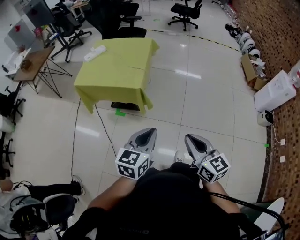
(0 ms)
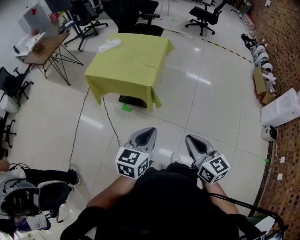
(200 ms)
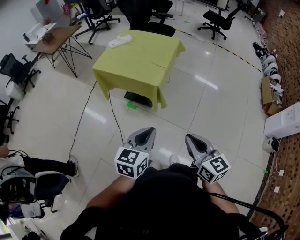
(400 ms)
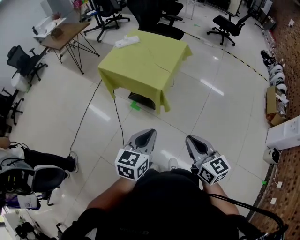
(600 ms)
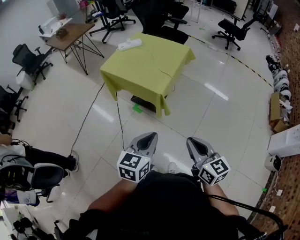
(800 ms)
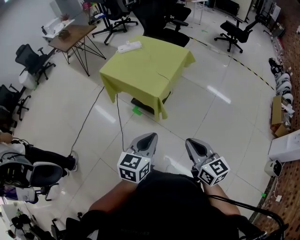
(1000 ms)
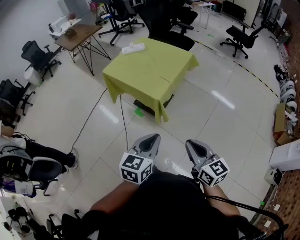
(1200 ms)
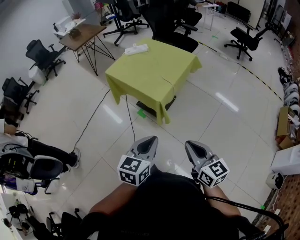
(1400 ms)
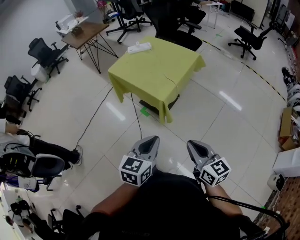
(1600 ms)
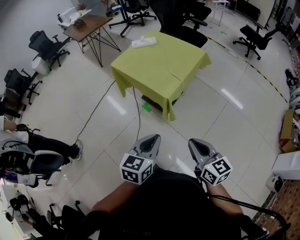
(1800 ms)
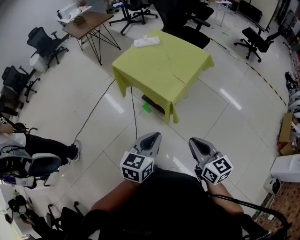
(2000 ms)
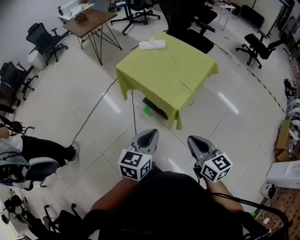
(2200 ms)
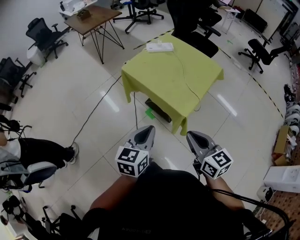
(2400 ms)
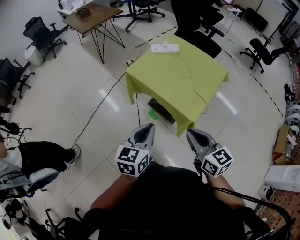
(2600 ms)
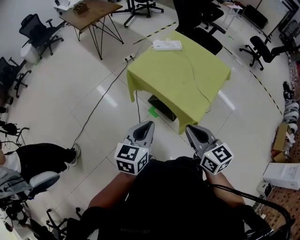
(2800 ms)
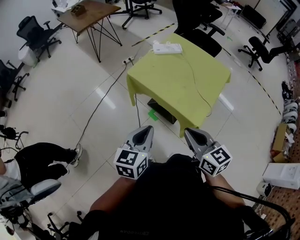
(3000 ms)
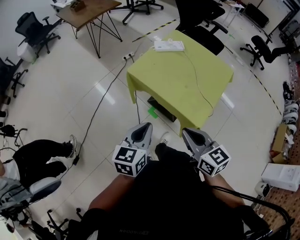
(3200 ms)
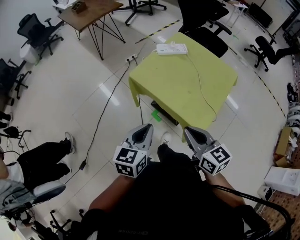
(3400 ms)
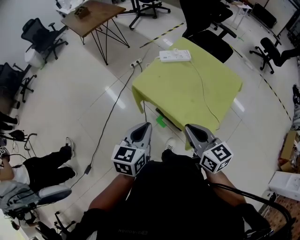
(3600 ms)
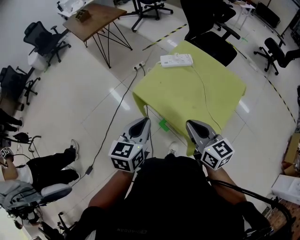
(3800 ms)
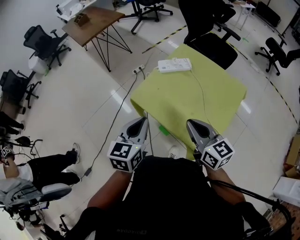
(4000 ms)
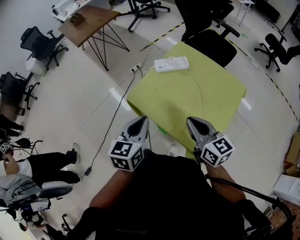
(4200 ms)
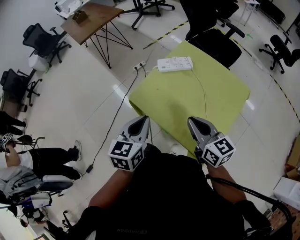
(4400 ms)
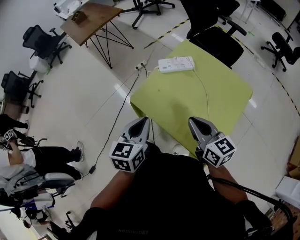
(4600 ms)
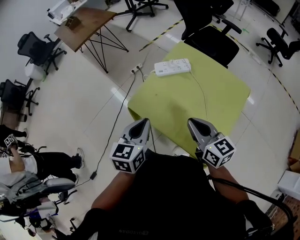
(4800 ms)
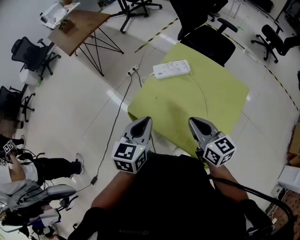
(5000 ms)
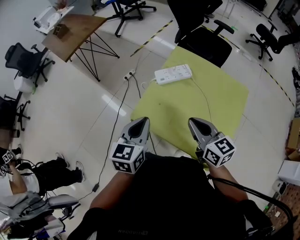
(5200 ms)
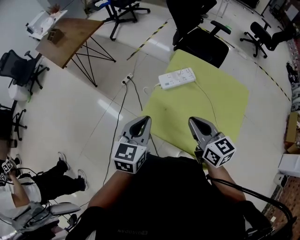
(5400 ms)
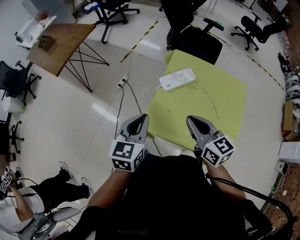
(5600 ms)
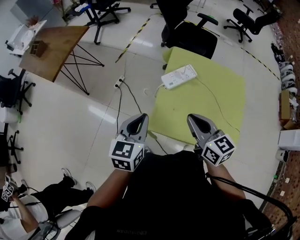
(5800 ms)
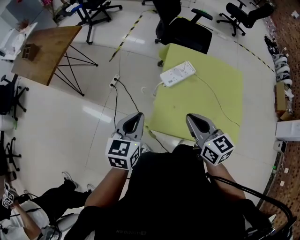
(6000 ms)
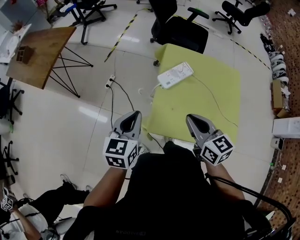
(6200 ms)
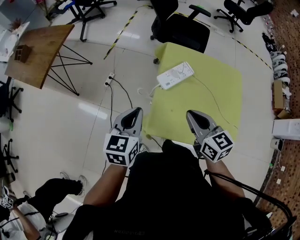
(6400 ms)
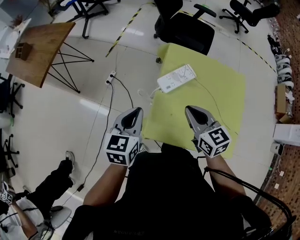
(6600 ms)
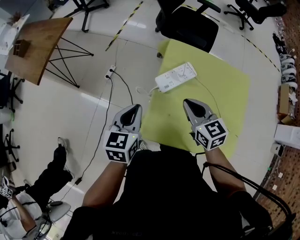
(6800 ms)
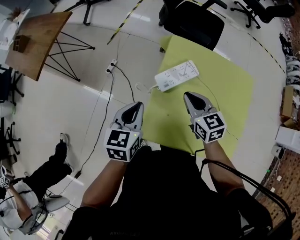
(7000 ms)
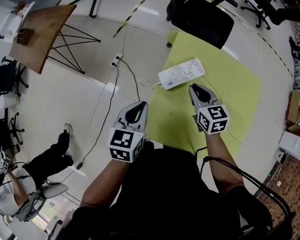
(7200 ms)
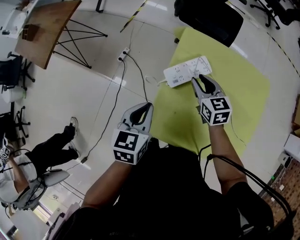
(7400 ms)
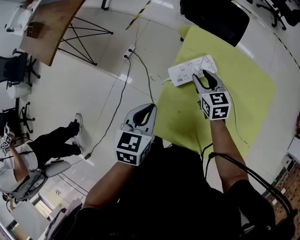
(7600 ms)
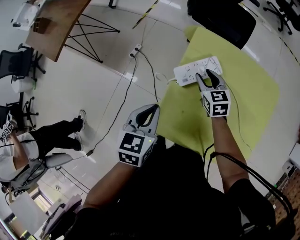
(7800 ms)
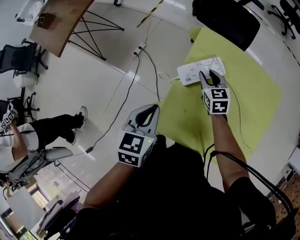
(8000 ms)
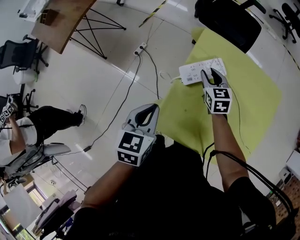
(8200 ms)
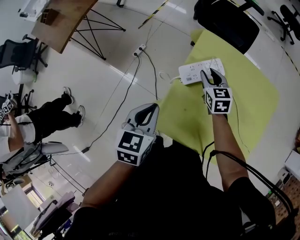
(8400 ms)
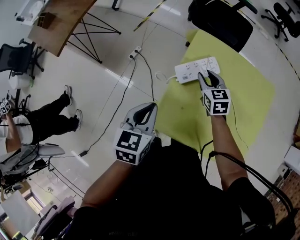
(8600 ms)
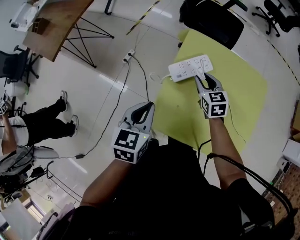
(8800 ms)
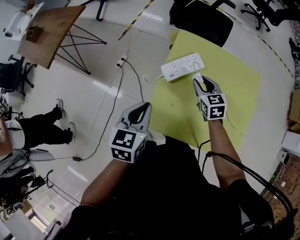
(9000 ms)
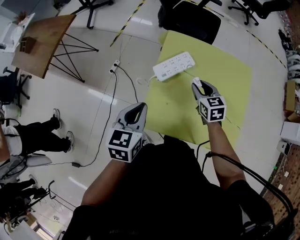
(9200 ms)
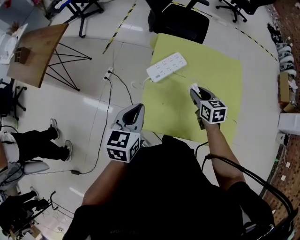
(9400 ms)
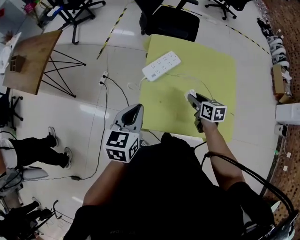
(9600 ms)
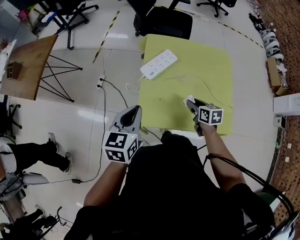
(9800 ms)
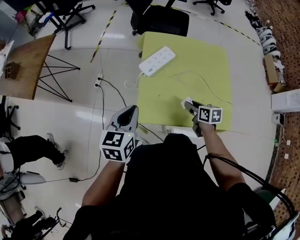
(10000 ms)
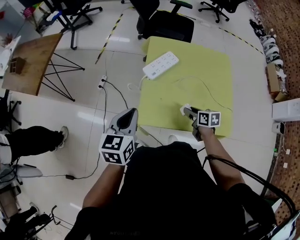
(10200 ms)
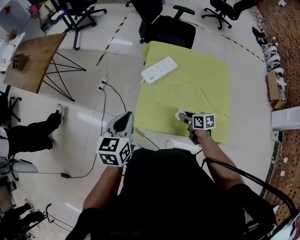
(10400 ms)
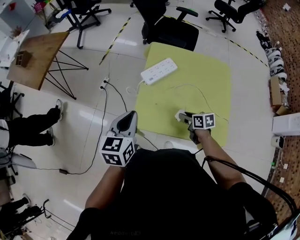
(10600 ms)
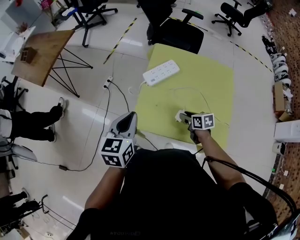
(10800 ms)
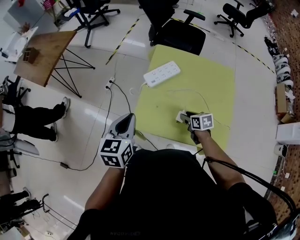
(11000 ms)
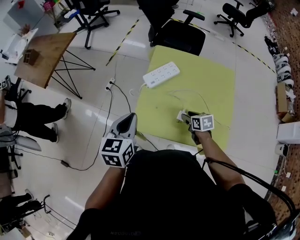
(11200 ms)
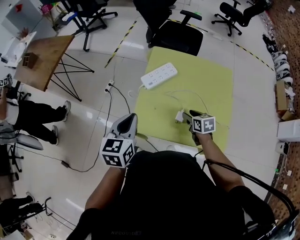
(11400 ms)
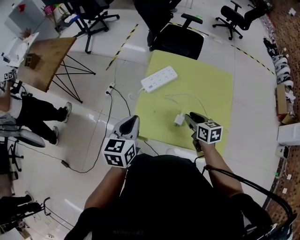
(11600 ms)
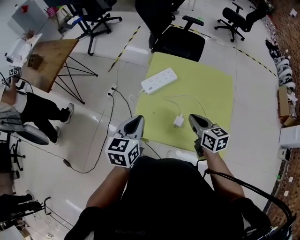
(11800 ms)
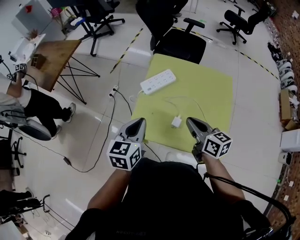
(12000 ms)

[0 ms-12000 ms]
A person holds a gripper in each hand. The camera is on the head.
0 ms to 1600 ms: The right gripper ends up approximately 15 cm from where it was, and swivels some 30 degrees, while the left gripper changes place by approximately 10 cm, and rotates approximately 30 degrees.
1600 ms to 3000 ms: Both grippers move forward and to the left, about 35 cm.
3000 ms to 4400 ms: Both grippers travel together forward, approximately 25 cm.
4400 ms to 6000 ms: The left gripper ends up approximately 25 cm from where it was, and changes its angle by some 30 degrees, while the right gripper ends up approximately 20 cm from where it was, and changes its angle by some 30 degrees.
6000 ms to 7600 ms: The right gripper goes about 30 cm forward and downward, and opens up, while the left gripper is displaced forward, to the right and downward by roughly 15 cm.
7600 ms to 9000 ms: The left gripper changes place by some 5 cm. The right gripper shifts about 5 cm backward.
9000 ms to 10400 ms: The right gripper goes about 20 cm backward, and changes its angle by approximately 40 degrees. The left gripper heads backward, covering approximately 5 cm.
10400 ms to 12000 ms: The left gripper heads to the right, covering about 10 cm. The right gripper travels upward by some 20 cm, swivels some 30 degrees, and closes its fingers.

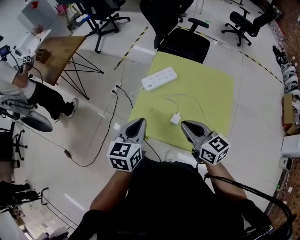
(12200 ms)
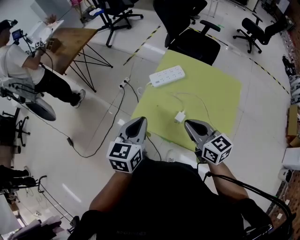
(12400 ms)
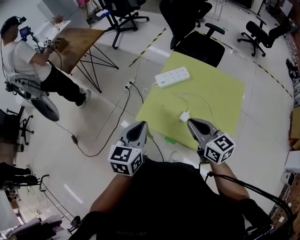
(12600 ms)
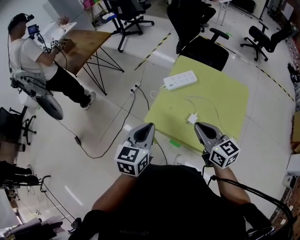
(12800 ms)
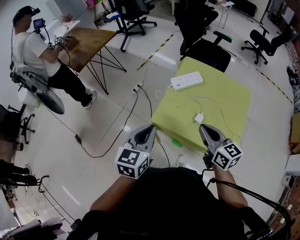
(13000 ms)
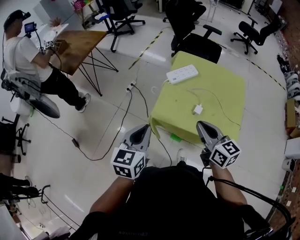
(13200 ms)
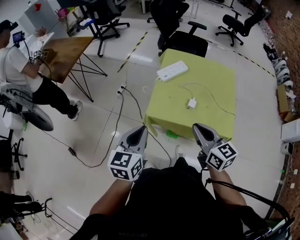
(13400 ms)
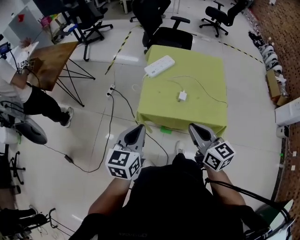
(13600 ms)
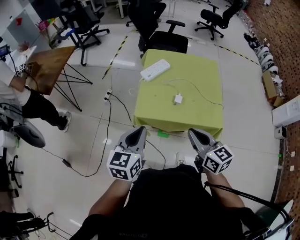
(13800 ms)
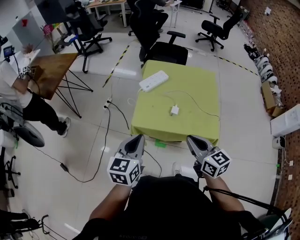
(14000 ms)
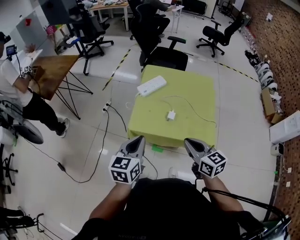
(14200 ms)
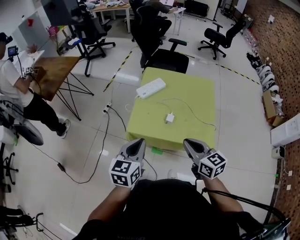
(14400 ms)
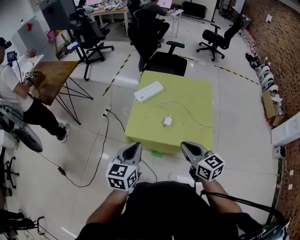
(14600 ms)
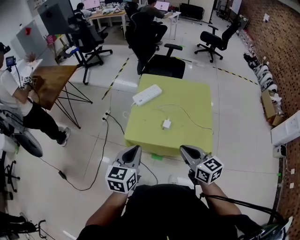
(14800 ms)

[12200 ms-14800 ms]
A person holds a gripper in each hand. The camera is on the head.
12200 ms to 13400 ms: The grippers both shift to the left and backward by approximately 15 cm.
13400 ms to 14800 ms: The two grippers go some 10 cm to the right.

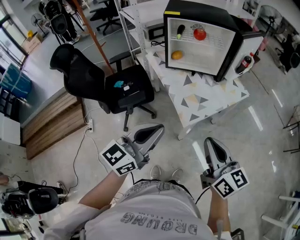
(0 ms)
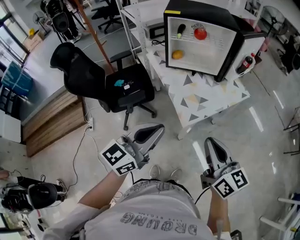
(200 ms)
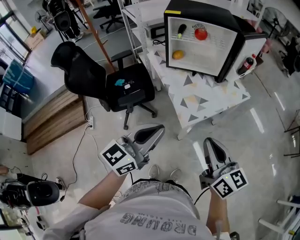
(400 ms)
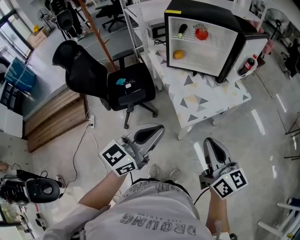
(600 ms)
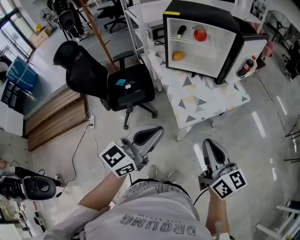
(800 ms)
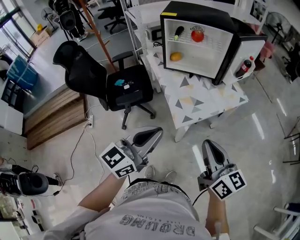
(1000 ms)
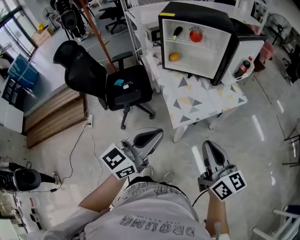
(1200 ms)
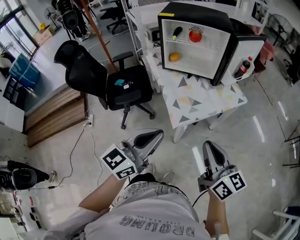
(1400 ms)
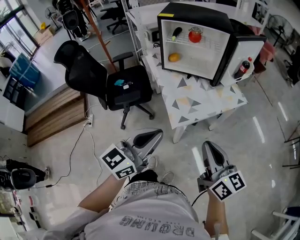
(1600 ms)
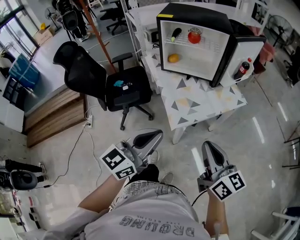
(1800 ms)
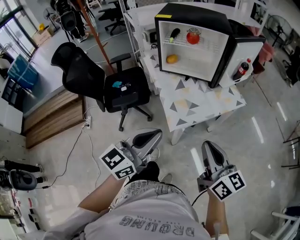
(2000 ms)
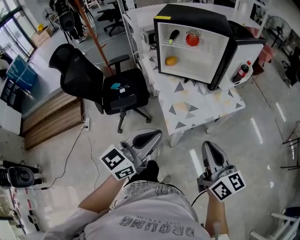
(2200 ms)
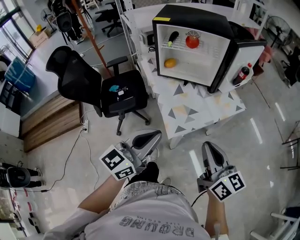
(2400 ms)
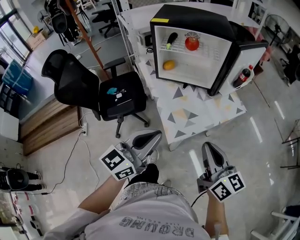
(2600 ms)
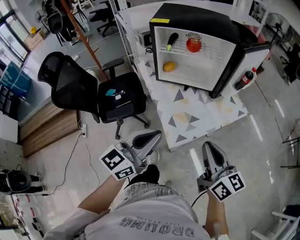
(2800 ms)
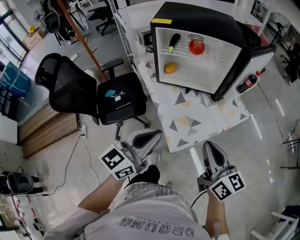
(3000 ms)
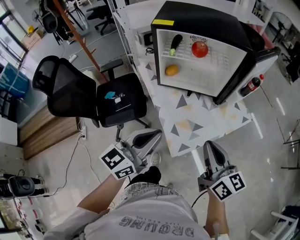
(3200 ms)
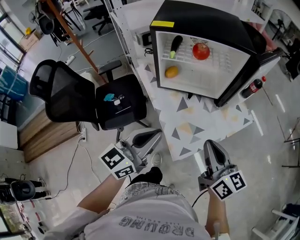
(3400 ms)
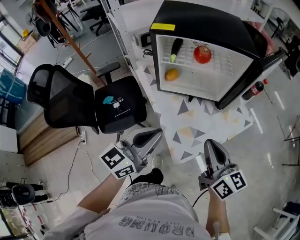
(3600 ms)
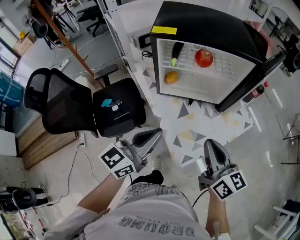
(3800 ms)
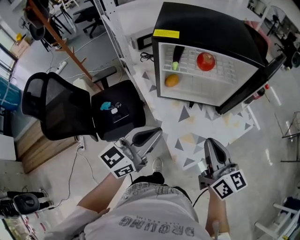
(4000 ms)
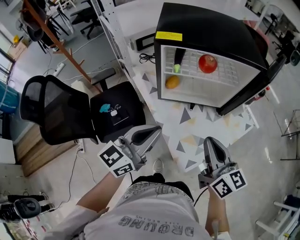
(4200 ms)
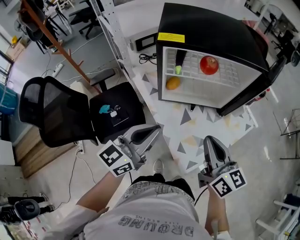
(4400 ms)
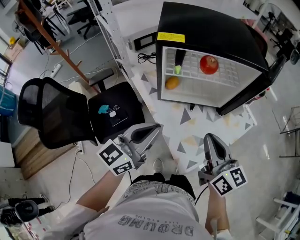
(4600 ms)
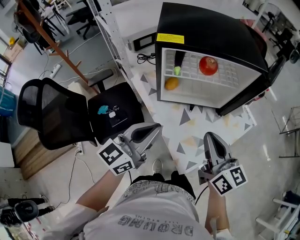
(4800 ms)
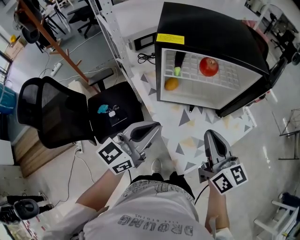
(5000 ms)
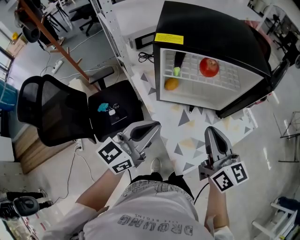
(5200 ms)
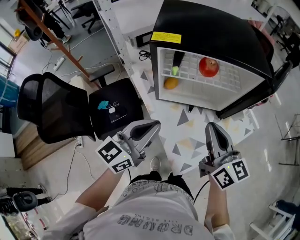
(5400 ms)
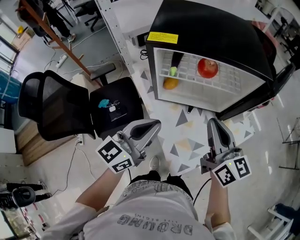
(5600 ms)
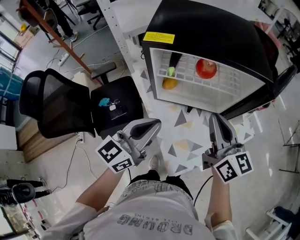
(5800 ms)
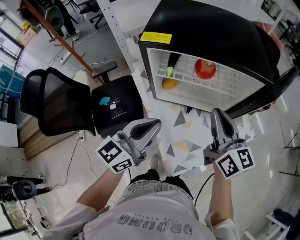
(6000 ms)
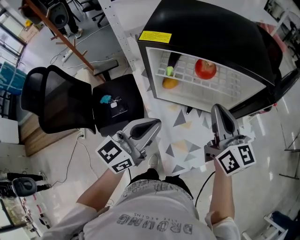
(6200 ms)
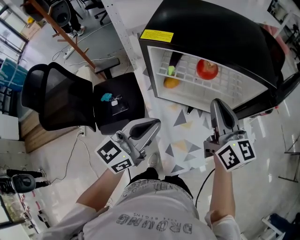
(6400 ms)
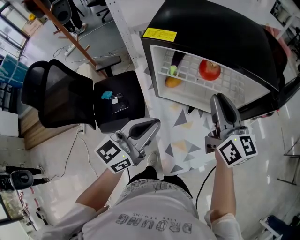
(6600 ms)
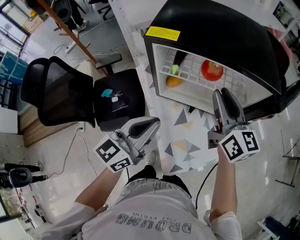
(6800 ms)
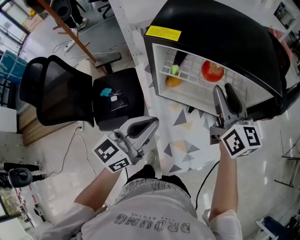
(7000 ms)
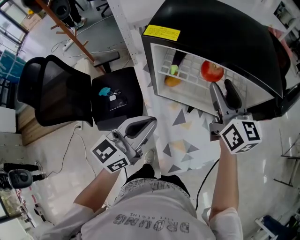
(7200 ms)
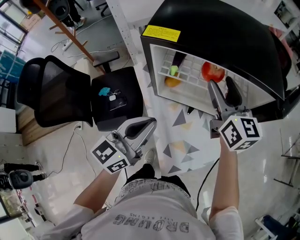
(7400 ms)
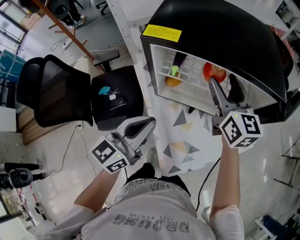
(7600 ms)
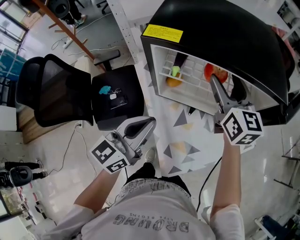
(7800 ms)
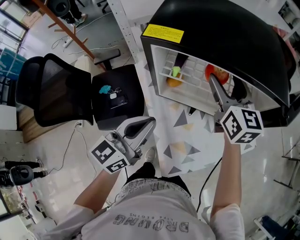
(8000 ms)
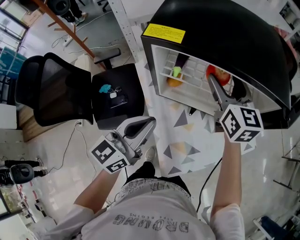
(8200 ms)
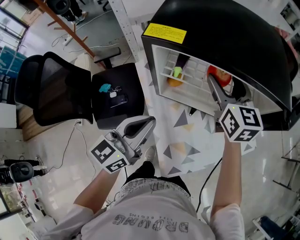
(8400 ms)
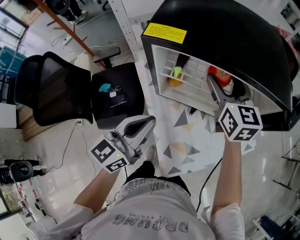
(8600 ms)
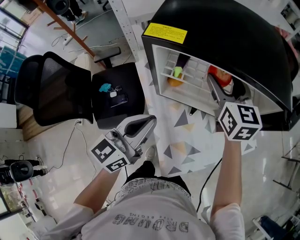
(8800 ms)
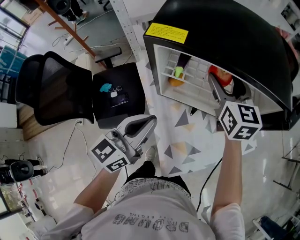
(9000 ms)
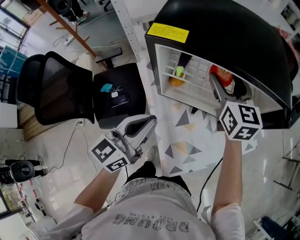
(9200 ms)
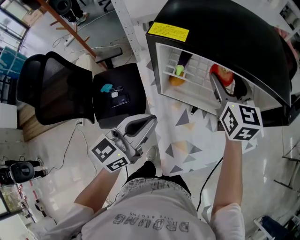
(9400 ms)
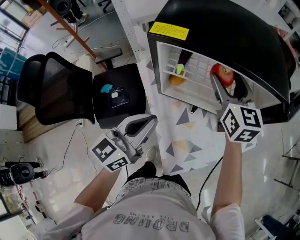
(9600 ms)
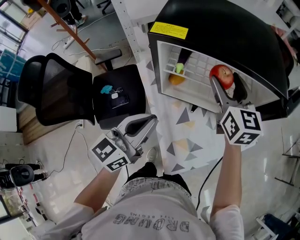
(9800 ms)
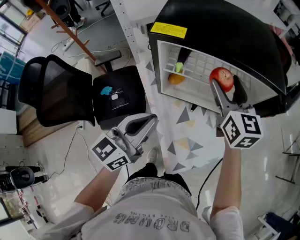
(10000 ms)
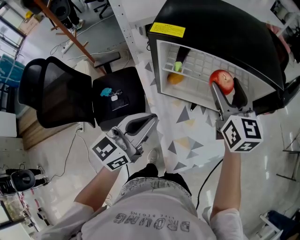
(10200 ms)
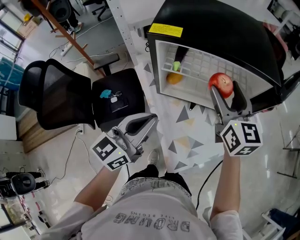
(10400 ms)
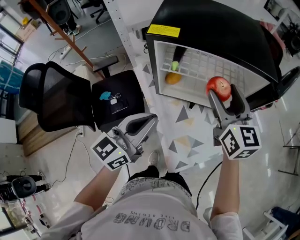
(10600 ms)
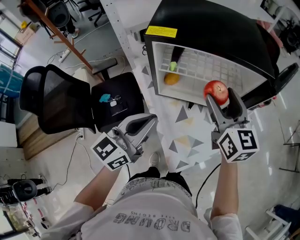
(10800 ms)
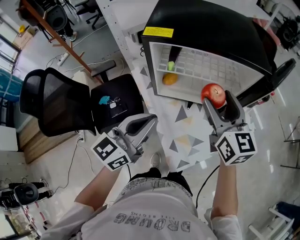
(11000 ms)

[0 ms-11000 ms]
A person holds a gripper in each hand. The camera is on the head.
0 ms to 1600 ms: Both grippers move to the right, some 10 cm.
1600 ms to 3200 ms: The two grippers go approximately 20 cm forward.
3200 ms to 4800 ms: The two grippers go about 15 cm forward and to the left.
4800 ms to 6200 ms: The right gripper moves forward, some 15 cm. The left gripper is displaced to the right by some 5 cm.
6200 ms to 7800 ms: The right gripper moves forward, some 15 cm, and opens.
7800 ms to 9400 ms: The grippers make only small movements.
9400 ms to 11000 ms: The right gripper shifts approximately 15 cm backward; the left gripper changes place by some 5 cm.
